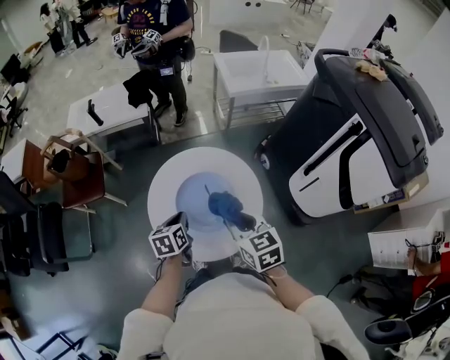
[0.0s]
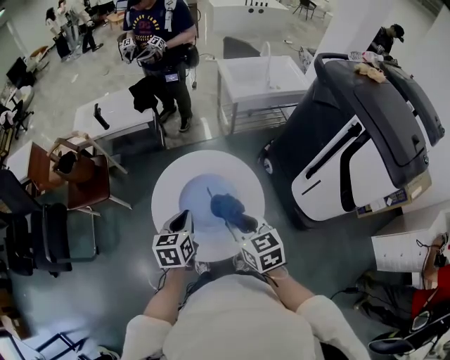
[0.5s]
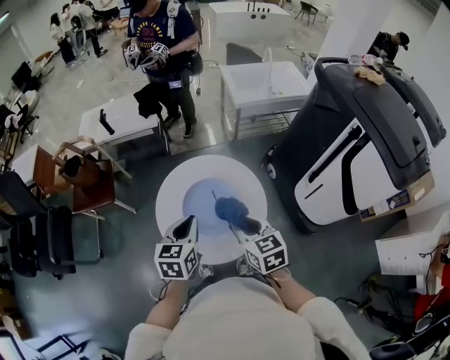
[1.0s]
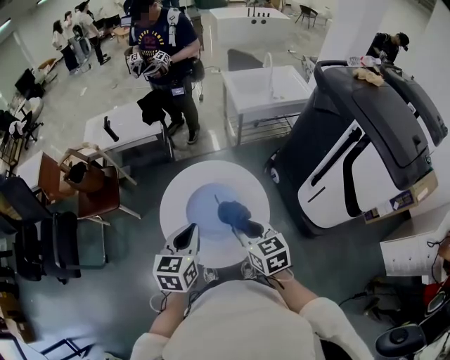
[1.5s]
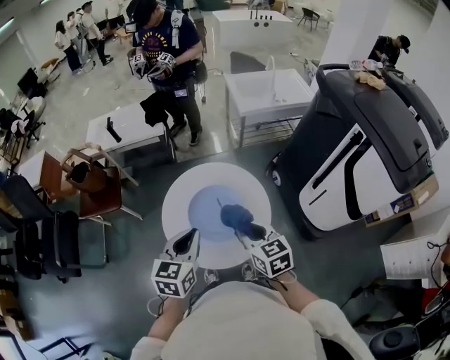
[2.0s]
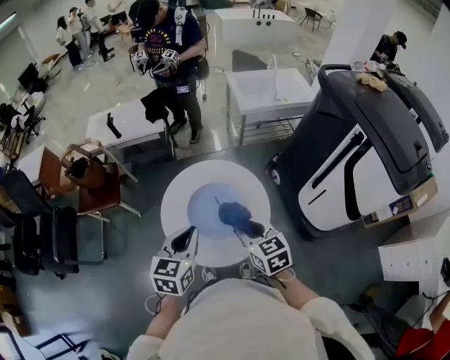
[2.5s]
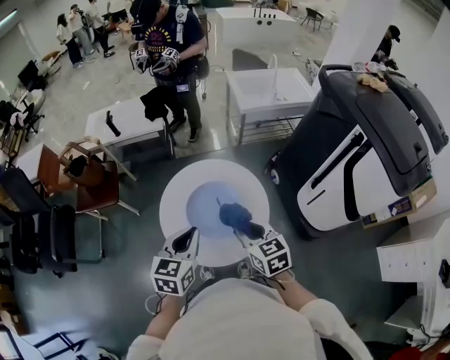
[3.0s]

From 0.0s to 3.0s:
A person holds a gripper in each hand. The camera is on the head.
From 0.0s to 1.5s: The left gripper shifts approximately 15 cm upward, and turns by about 30 degrees.
From 1.5s to 3.0s: There are only small adjustments of the grippers.

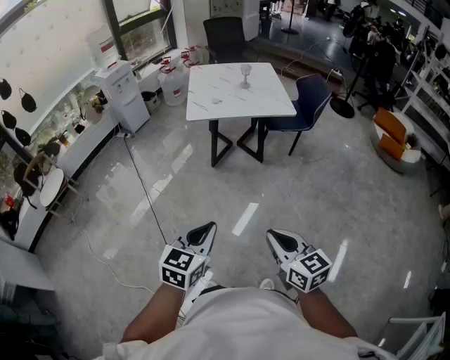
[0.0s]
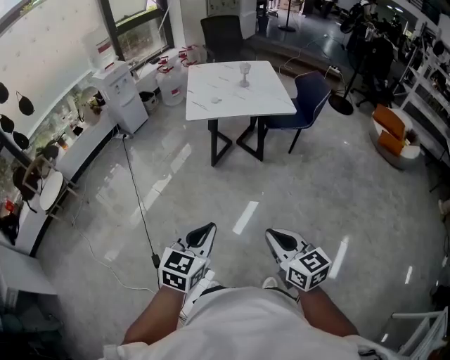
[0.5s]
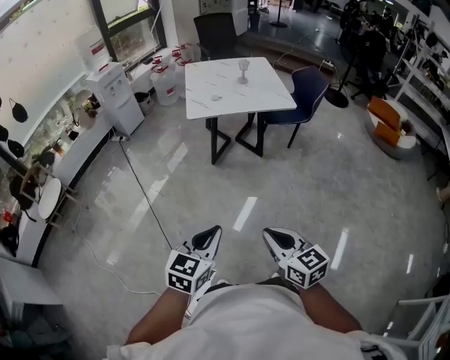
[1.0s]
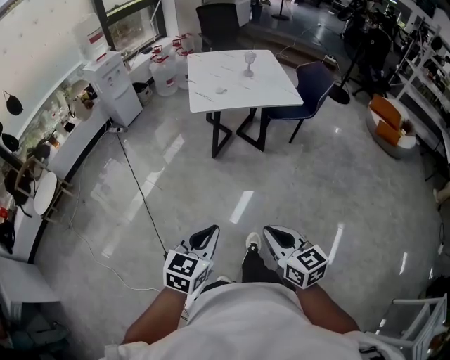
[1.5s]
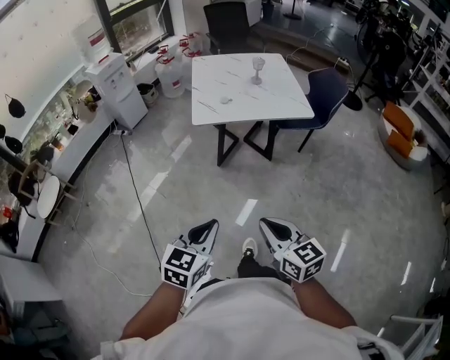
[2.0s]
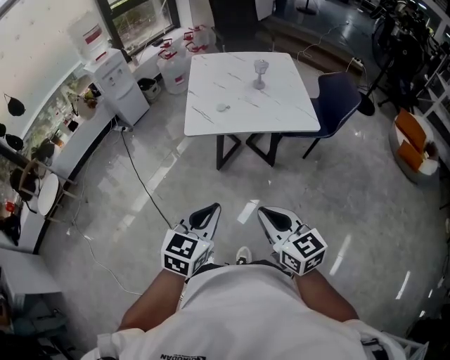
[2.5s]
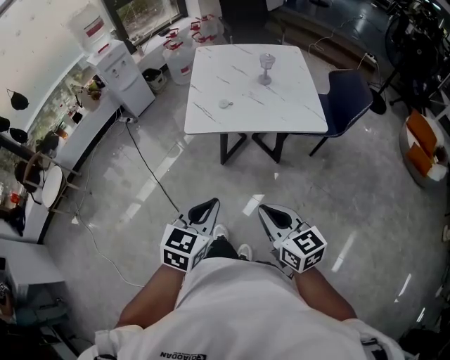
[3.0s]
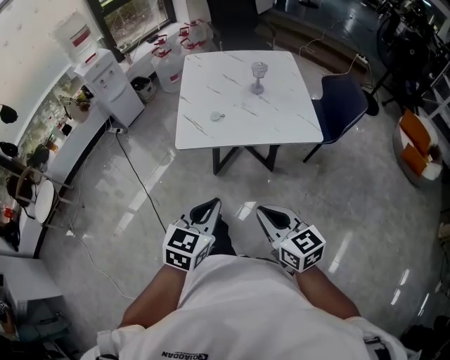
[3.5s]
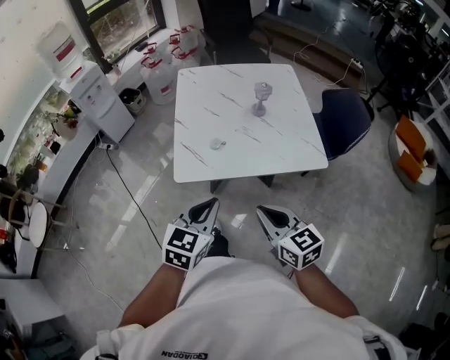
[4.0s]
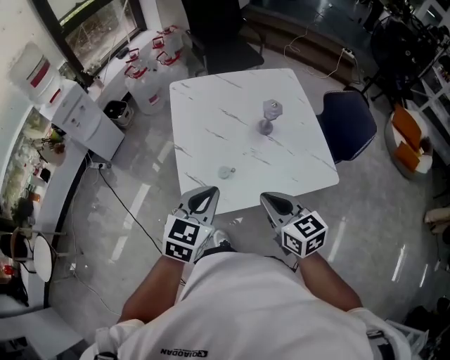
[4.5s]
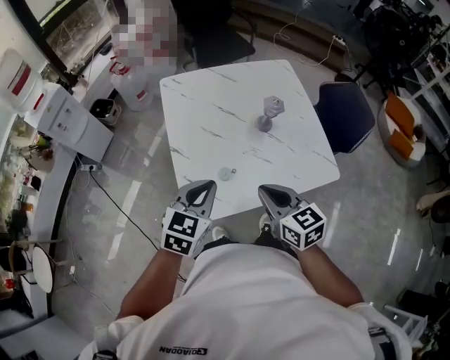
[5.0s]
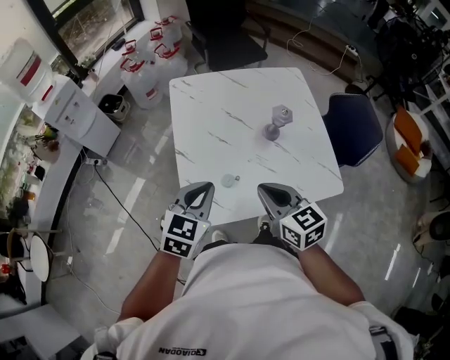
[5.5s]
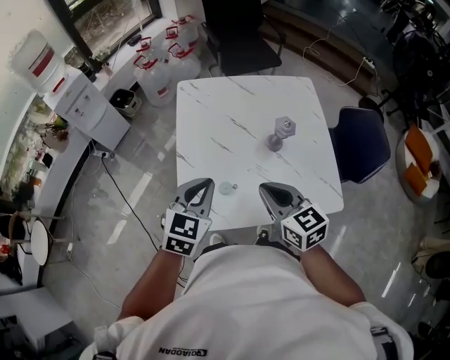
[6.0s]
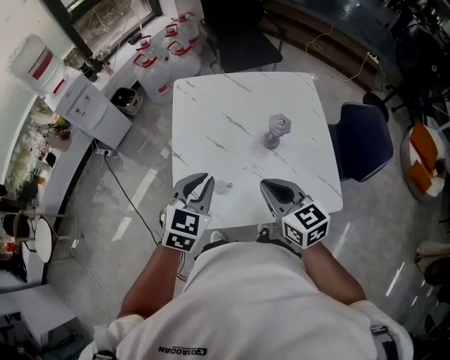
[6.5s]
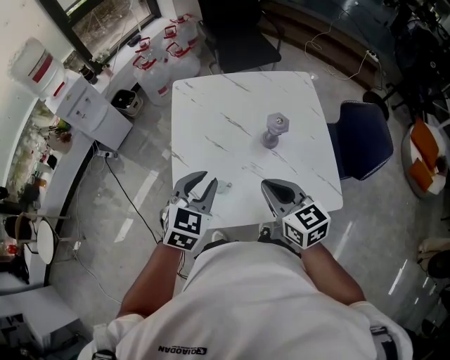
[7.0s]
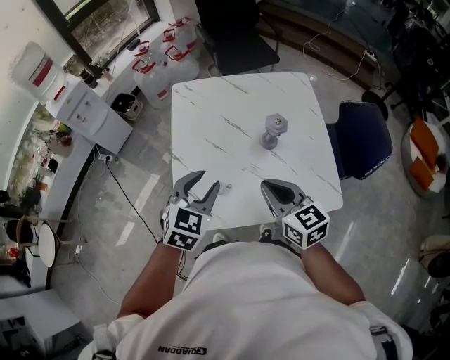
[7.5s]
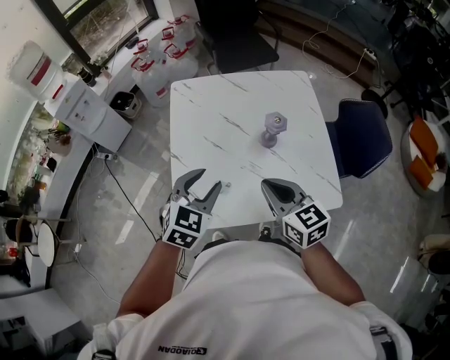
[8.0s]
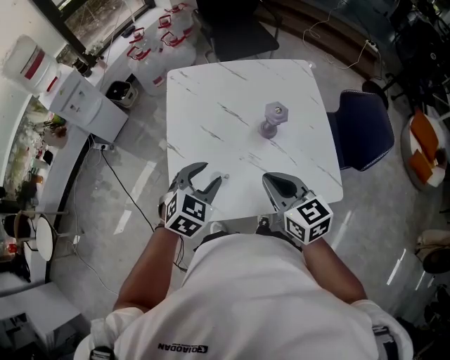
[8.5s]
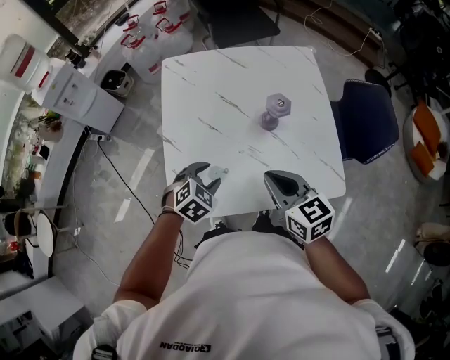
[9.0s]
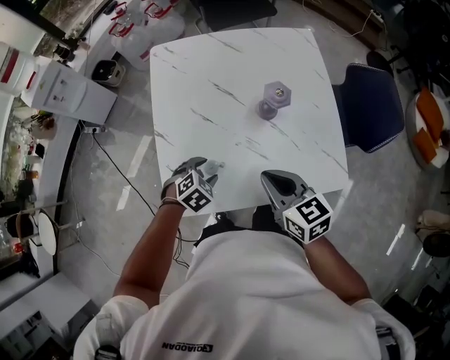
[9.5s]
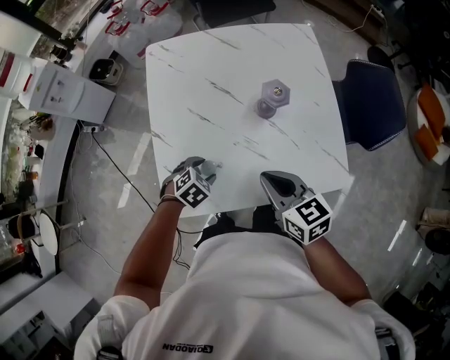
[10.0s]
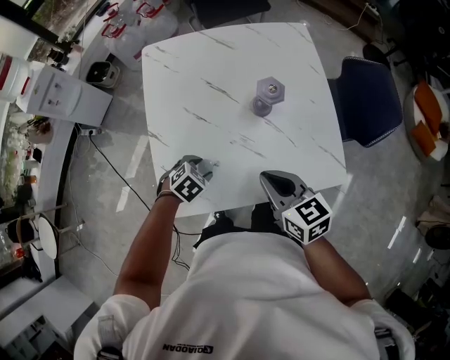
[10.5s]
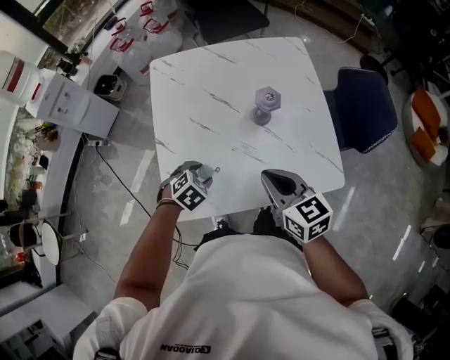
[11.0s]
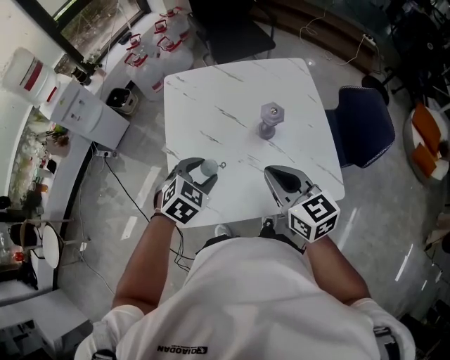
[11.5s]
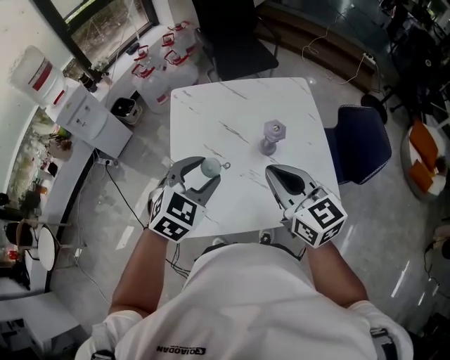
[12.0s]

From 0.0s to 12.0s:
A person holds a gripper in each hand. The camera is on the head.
From 0.0s to 2.0s: Both grippers travel together forward and to the left, approximately 20 cm.
From 2.0s to 4.0s: The pair of grippers is taken forward, roughly 40 cm.
From 4.0s to 6.0s: Both grippers travel together forward, approximately 30 cm.
From 6.0s to 8.0s: The left gripper opens.
From 8.0s to 10.0s: The left gripper goes some 25 cm downward, and tilts its fingers approximately 30 degrees downward. Meanwhile the right gripper moves downward, some 10 cm.
From 10.0s to 12.0s: The left gripper heads upward, covering some 30 cm, and tilts its fingers roughly 30 degrees upward. Meanwhile the right gripper shifts about 15 cm upward, and changes its angle by some 20 degrees.

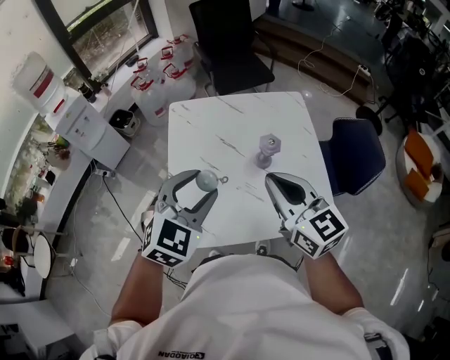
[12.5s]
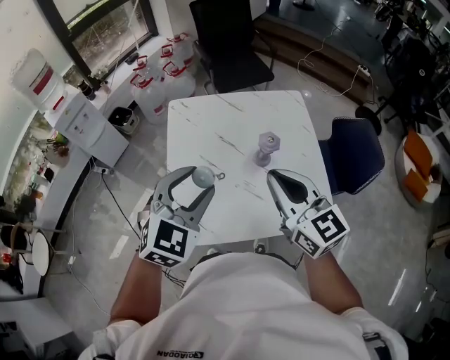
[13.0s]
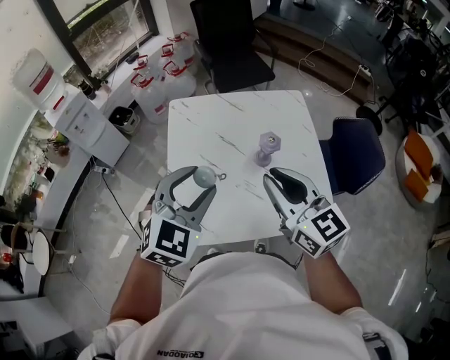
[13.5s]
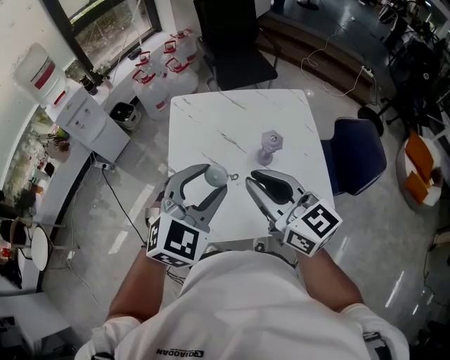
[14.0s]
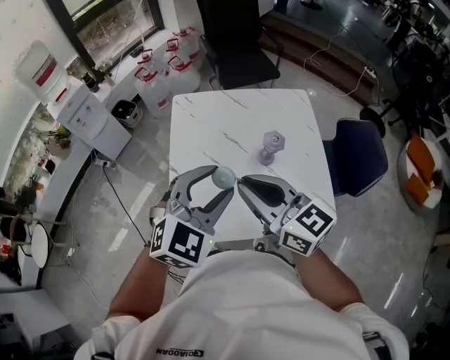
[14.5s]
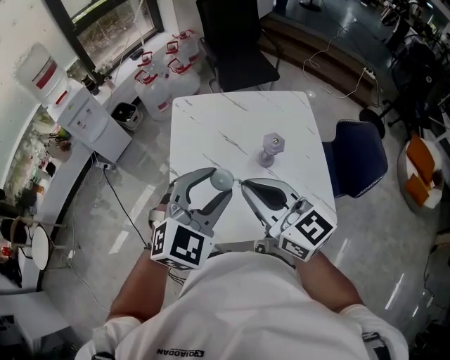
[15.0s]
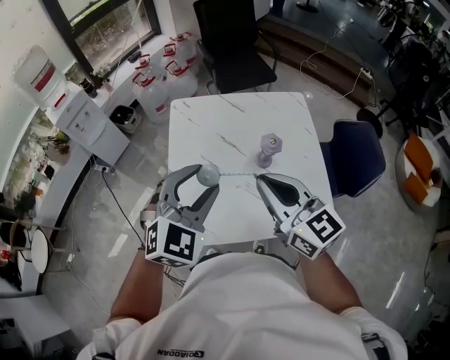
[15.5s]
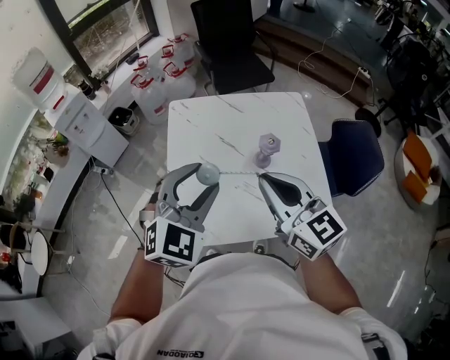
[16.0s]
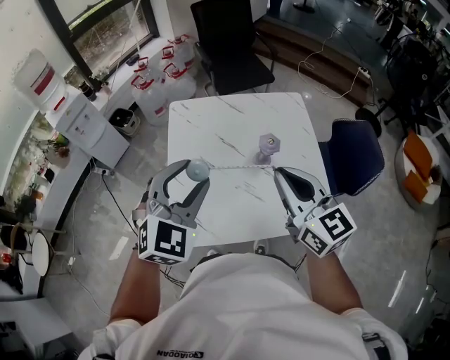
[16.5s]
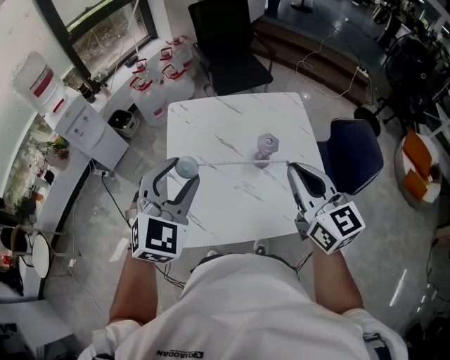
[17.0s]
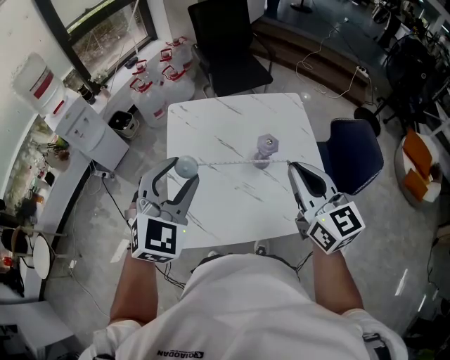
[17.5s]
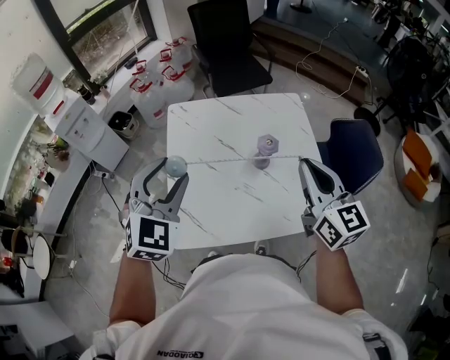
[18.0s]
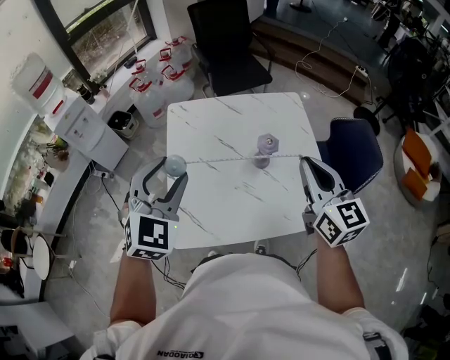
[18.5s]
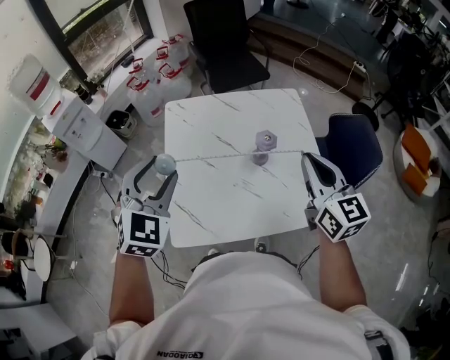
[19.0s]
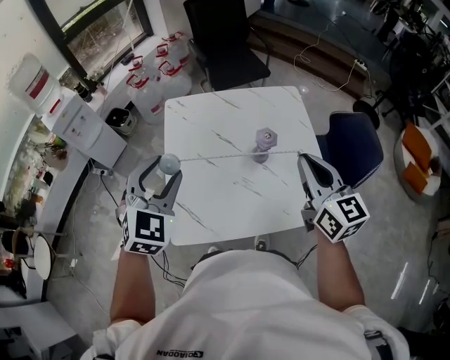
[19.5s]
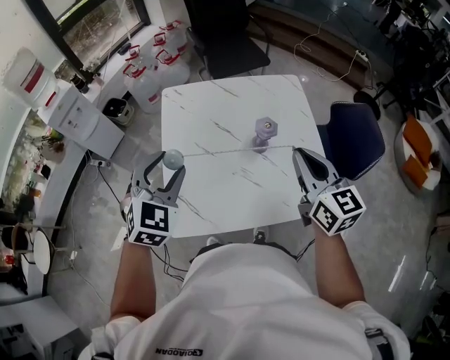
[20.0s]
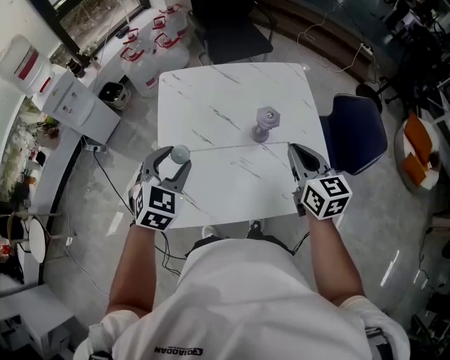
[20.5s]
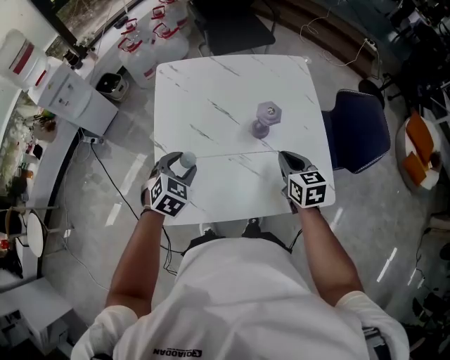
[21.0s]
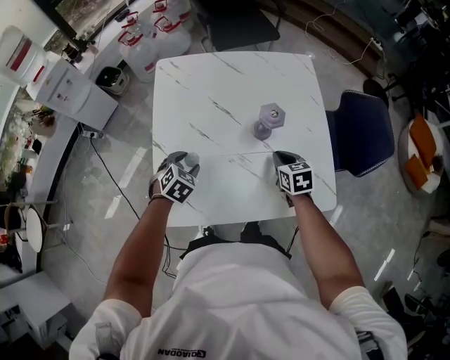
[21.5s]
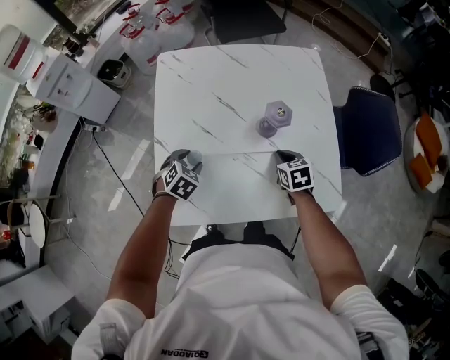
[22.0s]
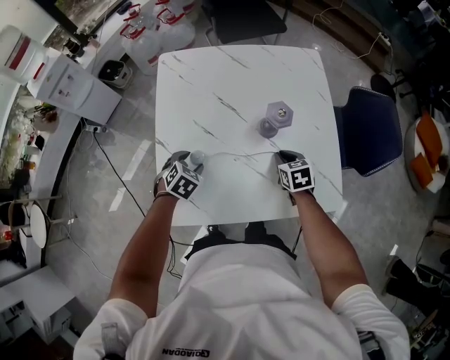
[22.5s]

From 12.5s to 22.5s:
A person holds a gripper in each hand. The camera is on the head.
From 12.5s to 14.5s: The right gripper heads to the left, covering approximately 5 cm.
From 14.5s to 16.5s: The left gripper moves some 5 cm. The right gripper travels to the right by some 10 cm.
From 16.5s to 18.5s: The left gripper goes some 5 cm to the left. The right gripper goes roughly 5 cm to the right.
From 18.5s to 20.5s: The two grippers go roughly 15 cm downward.
From 20.5s to 22.5s: The two grippers go about 25 cm downward. The left gripper changes its angle by about 30 degrees. Meanwhile the right gripper angles its fingers downward, by about 30 degrees.

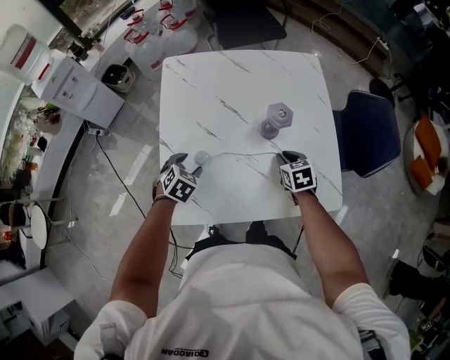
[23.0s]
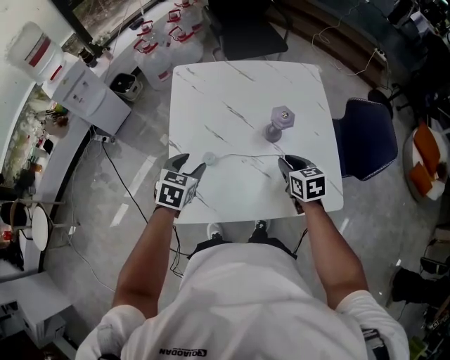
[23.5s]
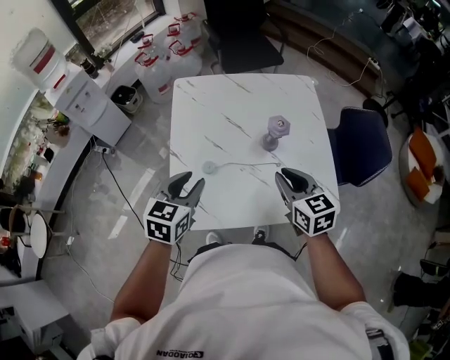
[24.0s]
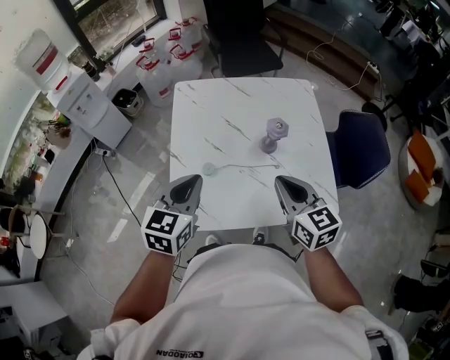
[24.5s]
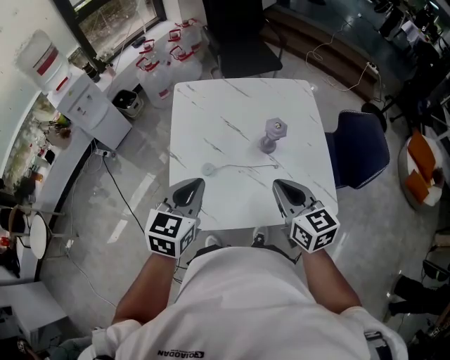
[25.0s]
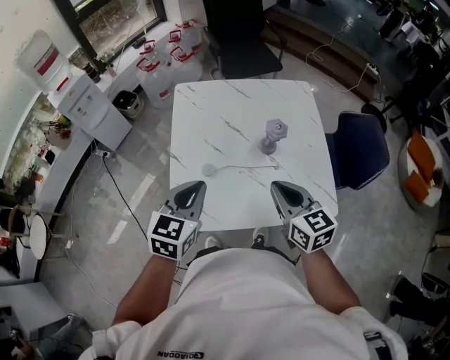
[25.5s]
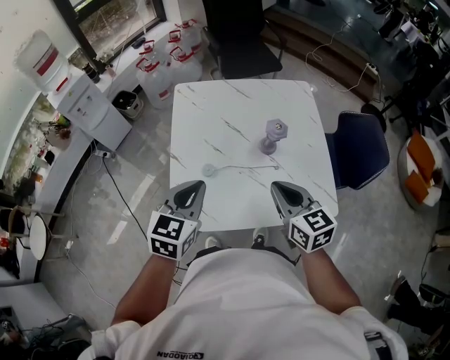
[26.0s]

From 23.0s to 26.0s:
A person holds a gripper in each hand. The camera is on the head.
From 23.0s to 24.5s: The right gripper heads upward and backward, covering roughly 25 cm, and tips its fingers upward by some 30 degrees, while the left gripper shifts about 25 cm upward, points its fingers about 40 degrees further upward, and closes its fingers.
From 24.5s to 26.0s: The grippers make only small movements.
